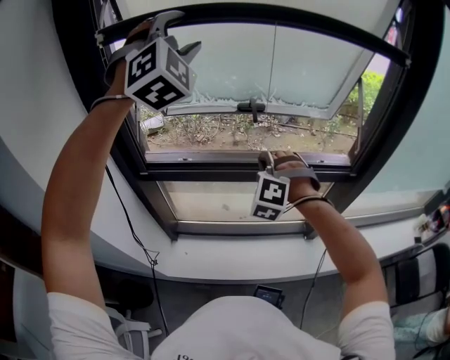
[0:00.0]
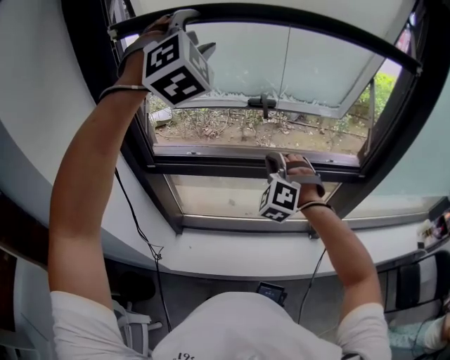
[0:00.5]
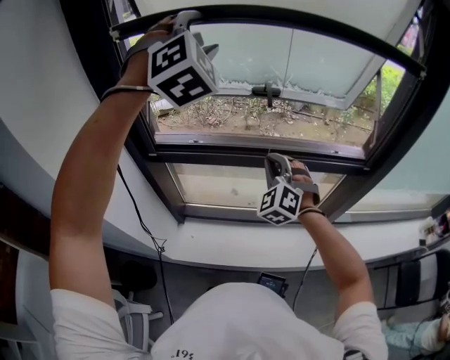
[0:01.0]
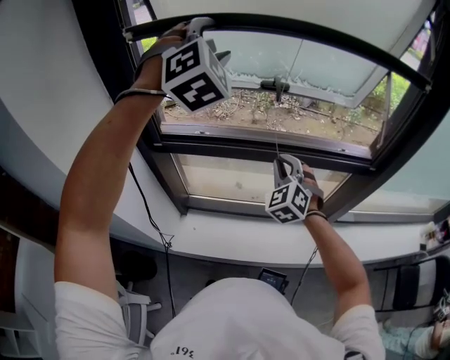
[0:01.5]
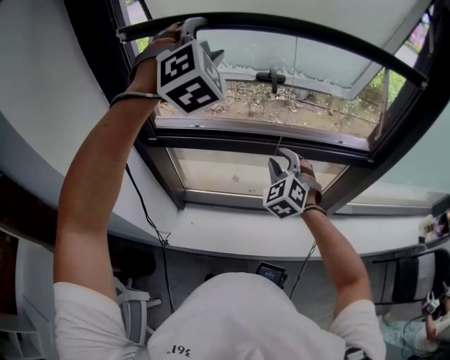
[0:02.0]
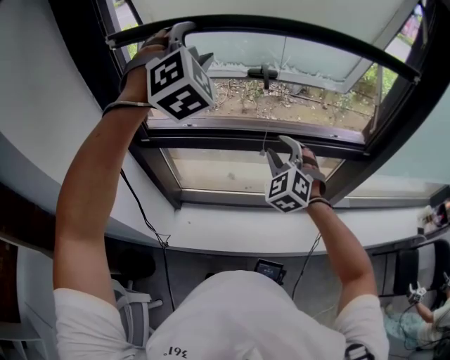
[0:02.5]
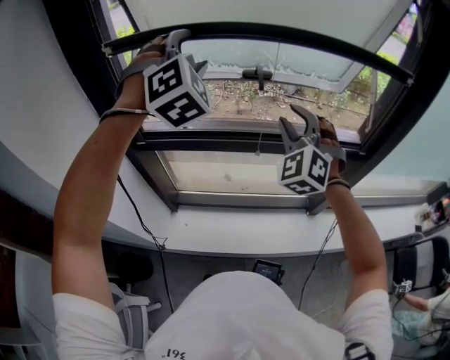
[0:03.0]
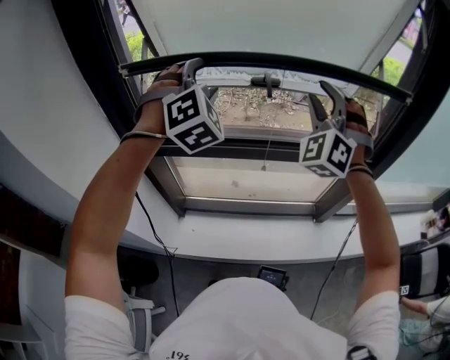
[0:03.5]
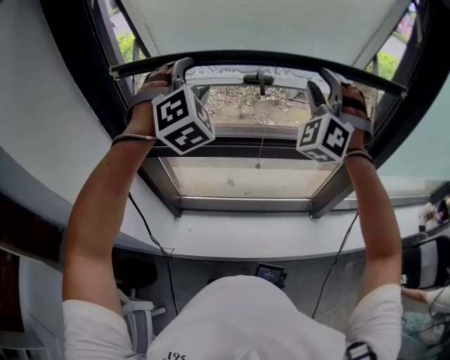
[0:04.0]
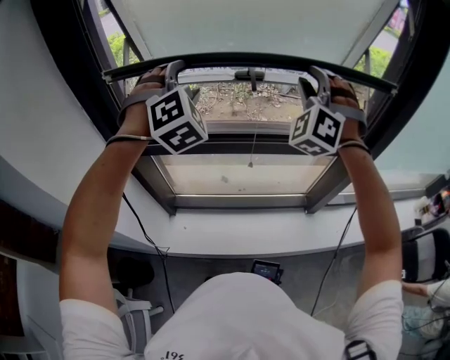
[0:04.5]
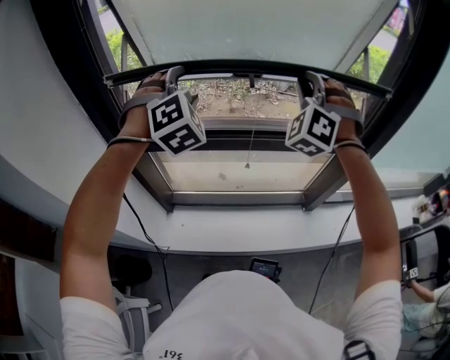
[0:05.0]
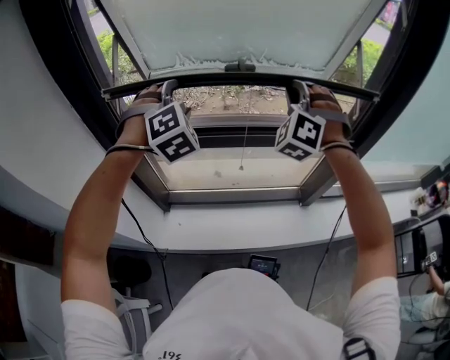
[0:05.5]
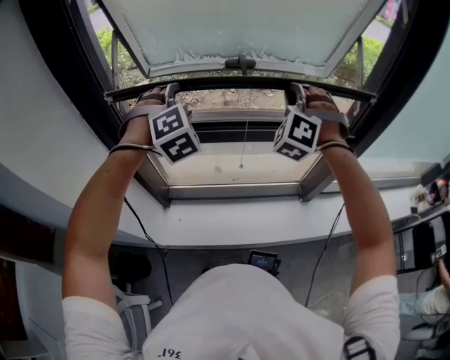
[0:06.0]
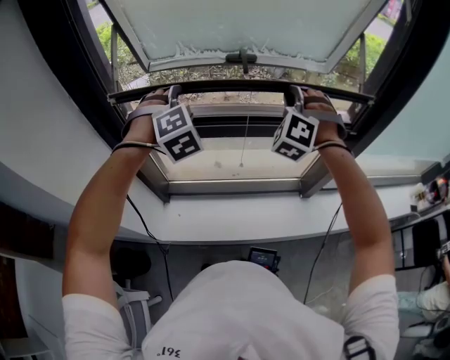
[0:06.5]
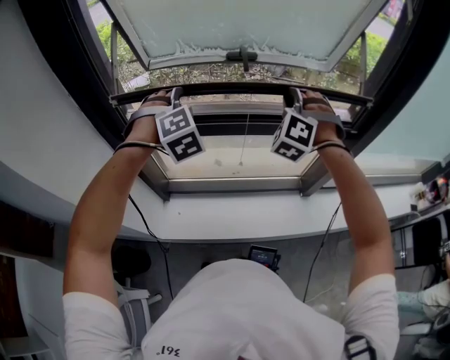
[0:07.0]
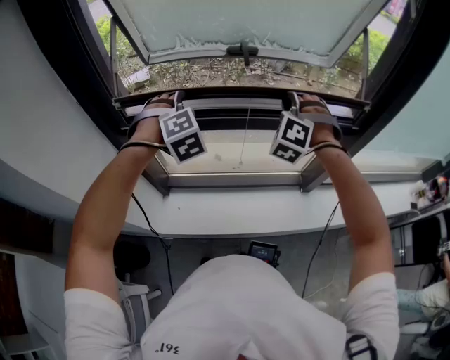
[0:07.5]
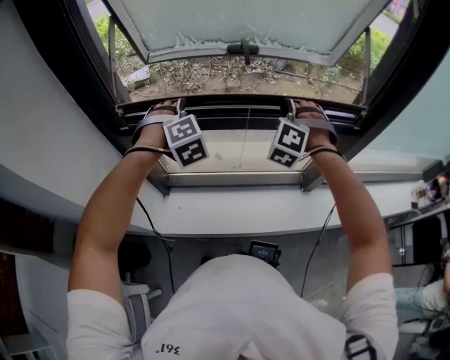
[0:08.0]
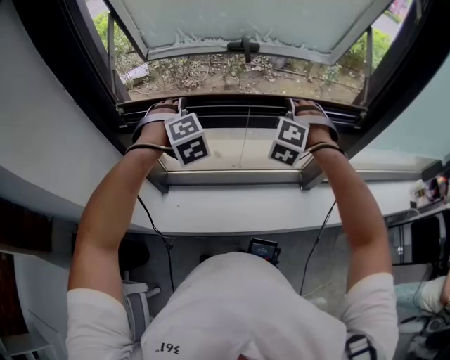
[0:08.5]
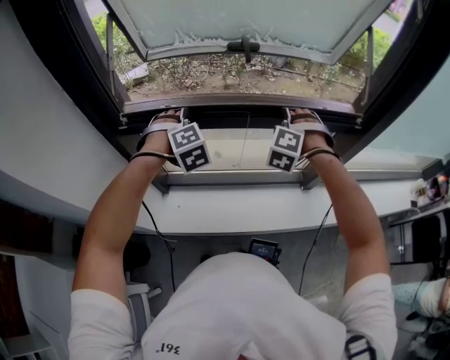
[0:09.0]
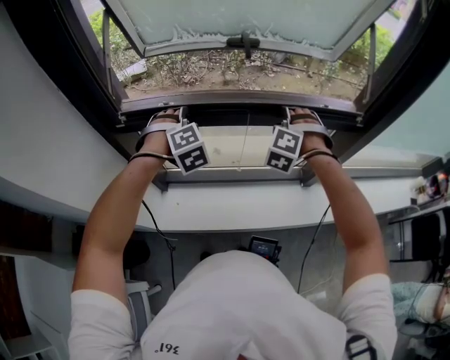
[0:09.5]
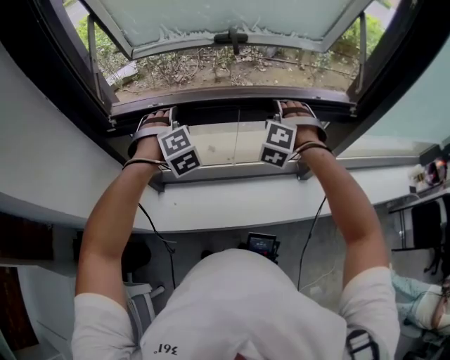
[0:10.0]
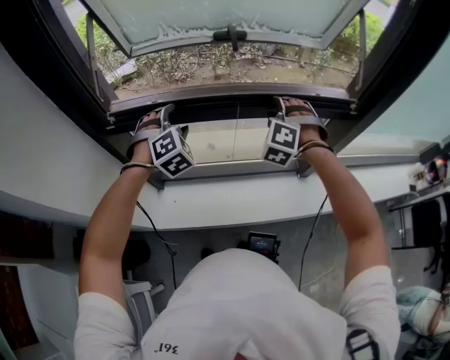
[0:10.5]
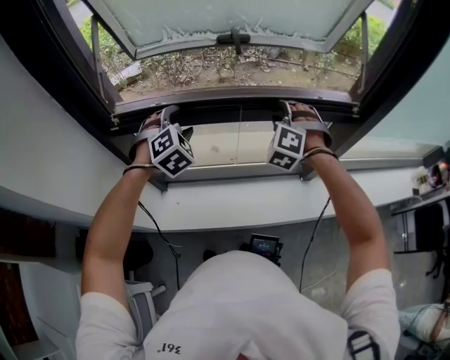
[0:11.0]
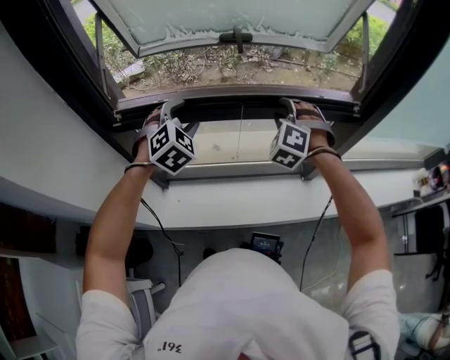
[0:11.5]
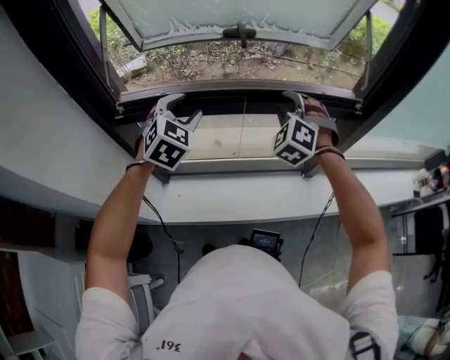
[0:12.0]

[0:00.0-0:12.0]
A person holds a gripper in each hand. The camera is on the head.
0:00.0 to 0:02.0: The grippers both shift downward by roughly 10 cm. The right gripper turns by some 30 degrees, and opens up.
0:02.0 to 0:04.0: The left gripper travels downward by about 10 cm, while the right gripper travels upward by about 25 cm, and rotates approximately 40 degrees.
0:04.0 to 0:06.0: The two grippers go approximately 10 cm downward. The right gripper rotates roughly 20 degrees, and closes its fingers.
0:06.0 to 0:08.0: The grippers both shift downward by approximately 10 cm.
0:08.0 to 0:10.0: Both grippers travel together downward, about 5 cm. The right gripper opens up.
0:10.0 to 0:12.0: The left gripper shifts approximately 10 cm upward, and changes its angle by approximately 40 degrees; the right gripper moves some 5 cm.

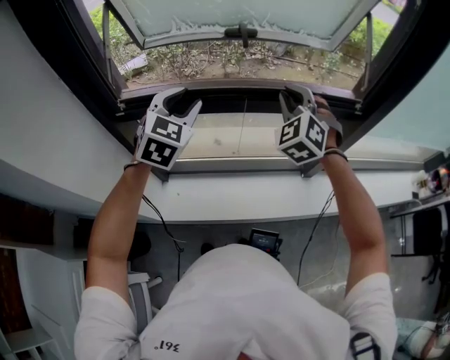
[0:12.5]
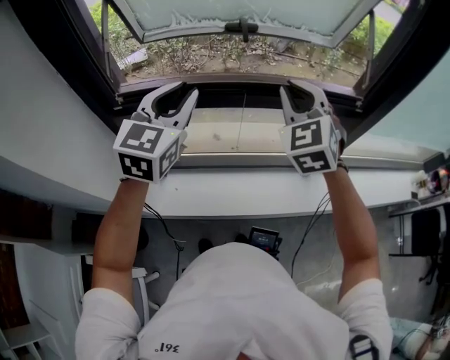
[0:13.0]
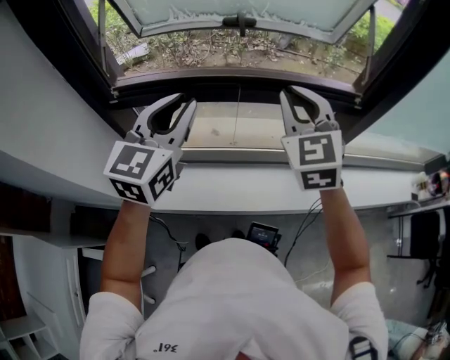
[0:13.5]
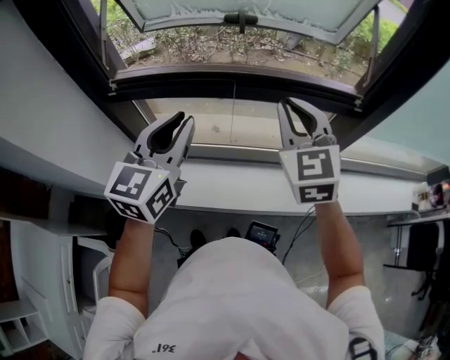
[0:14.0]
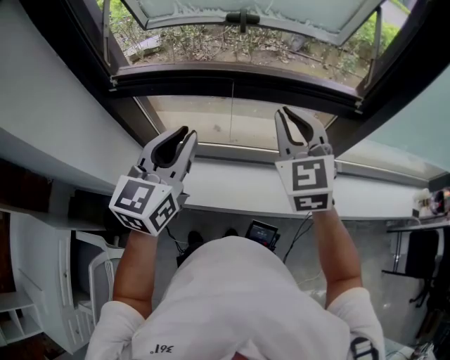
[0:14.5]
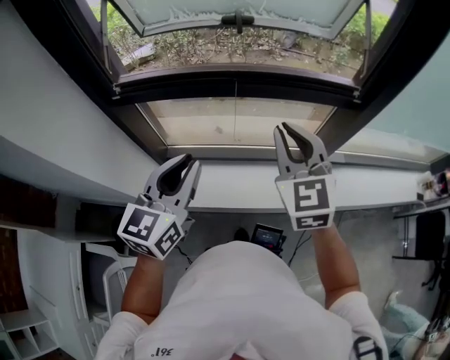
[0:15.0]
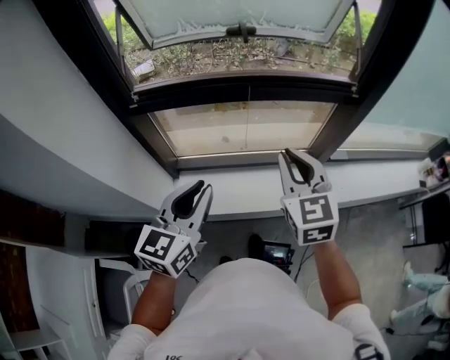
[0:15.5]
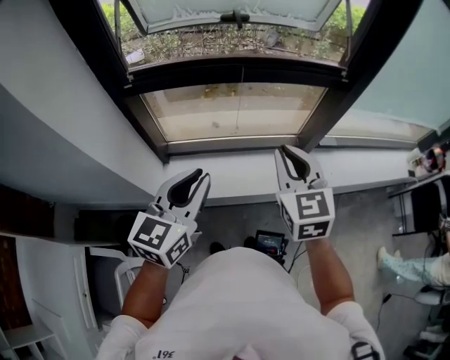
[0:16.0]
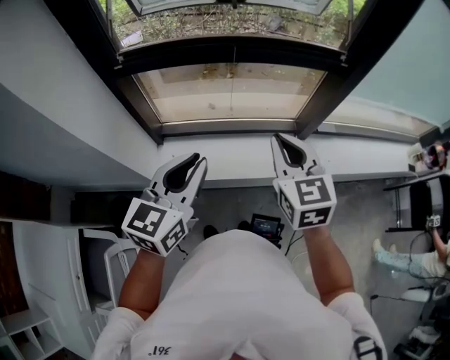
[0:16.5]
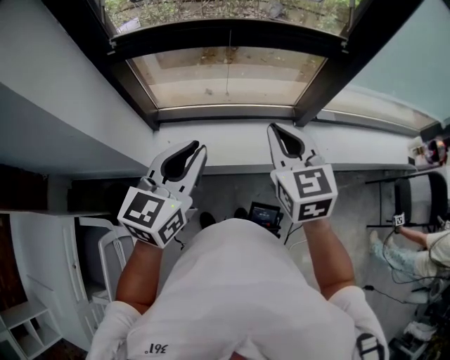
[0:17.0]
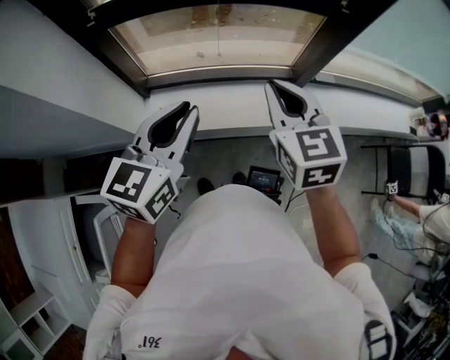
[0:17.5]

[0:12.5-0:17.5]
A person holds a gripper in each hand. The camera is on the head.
0:12.5 to 0:15.0: Both grippers travel together backward, about 20 cm. The right gripper changes its angle by approximately 40 degrees, while the left gripper swivels about 40 degrees.
0:15.0 to 0:17.5: The right gripper shifts some 15 cm backward and downward. Meanwhile the left gripper heads backward, covering approximately 10 cm.

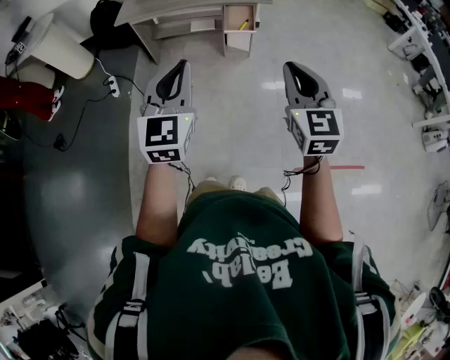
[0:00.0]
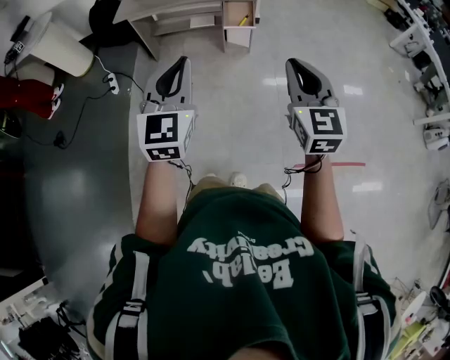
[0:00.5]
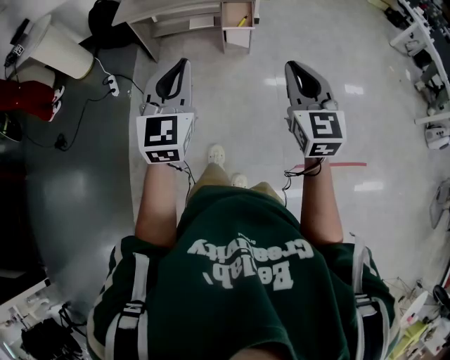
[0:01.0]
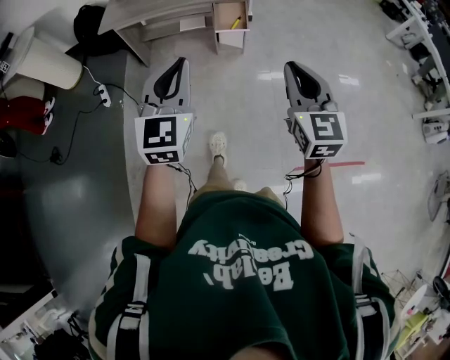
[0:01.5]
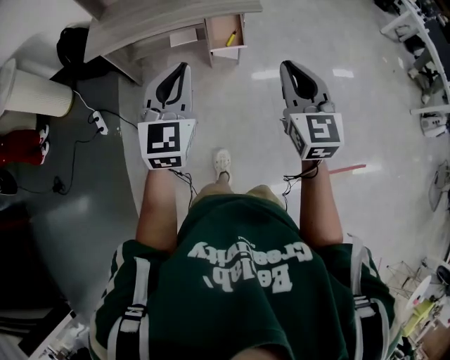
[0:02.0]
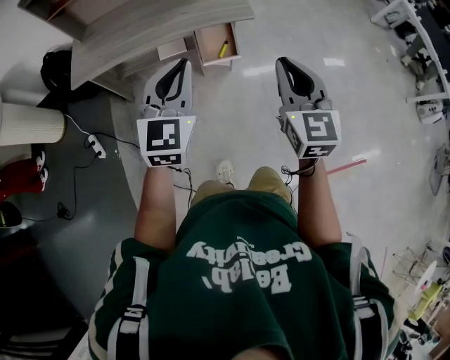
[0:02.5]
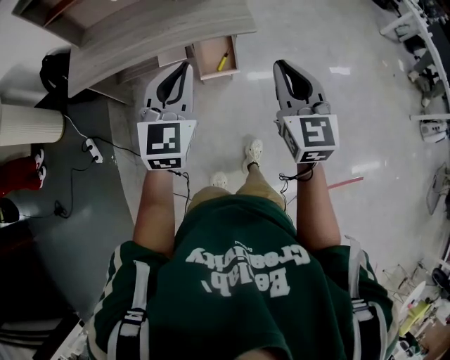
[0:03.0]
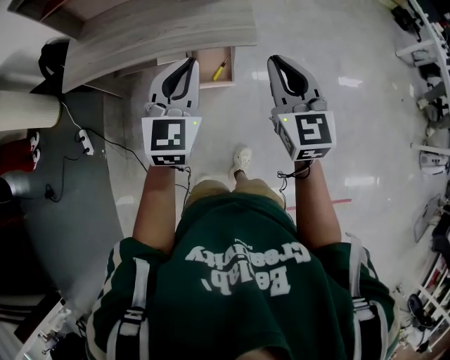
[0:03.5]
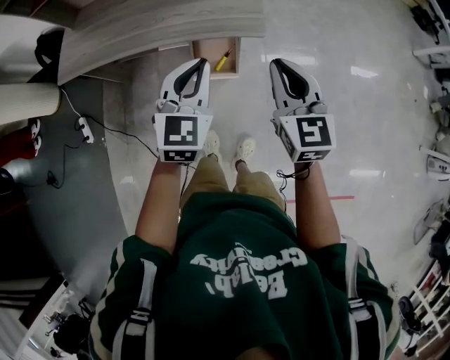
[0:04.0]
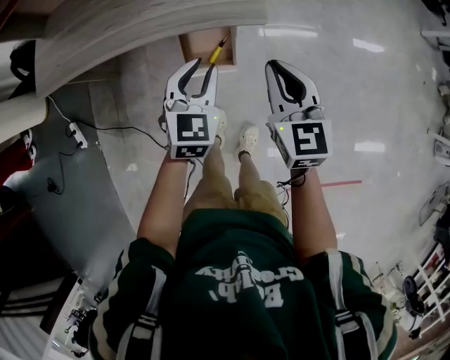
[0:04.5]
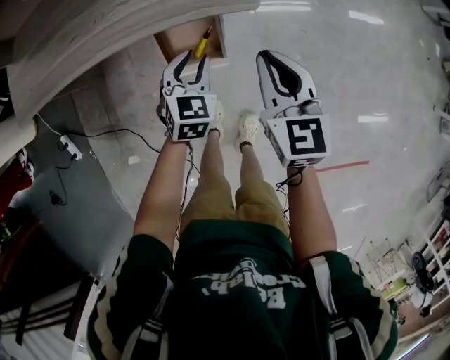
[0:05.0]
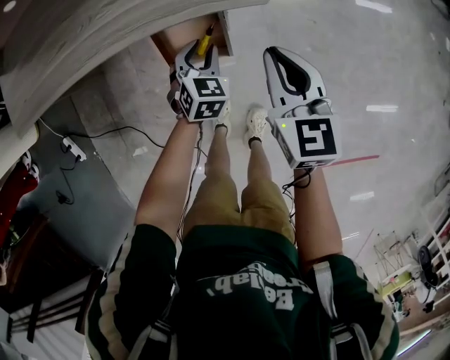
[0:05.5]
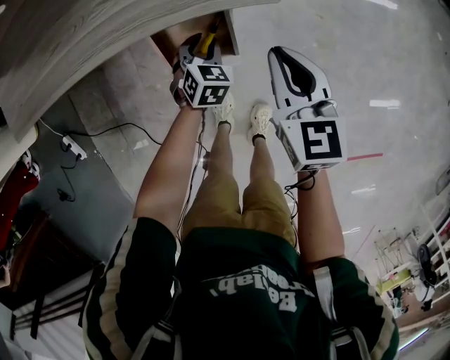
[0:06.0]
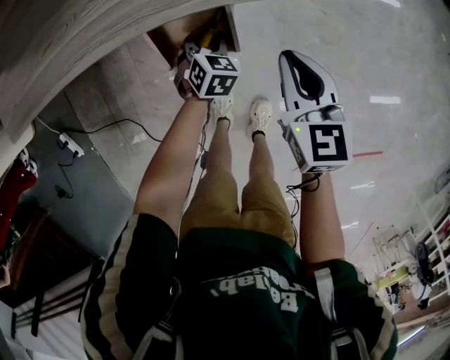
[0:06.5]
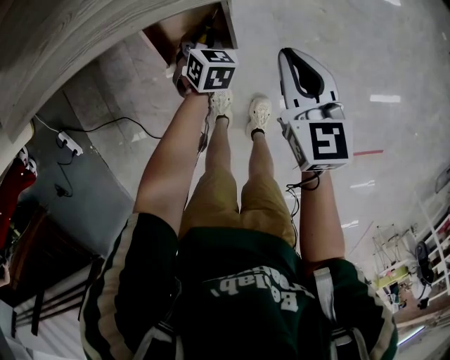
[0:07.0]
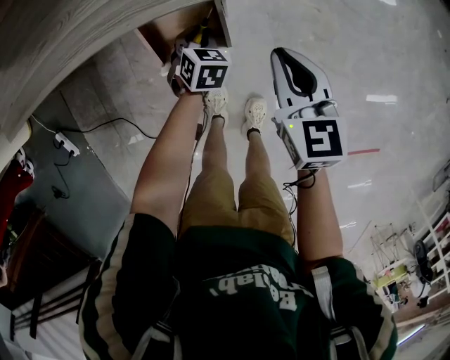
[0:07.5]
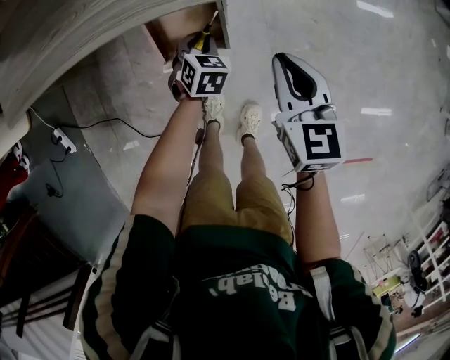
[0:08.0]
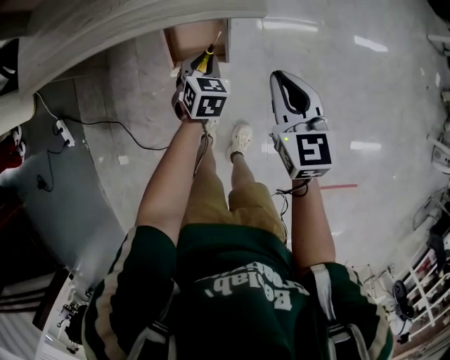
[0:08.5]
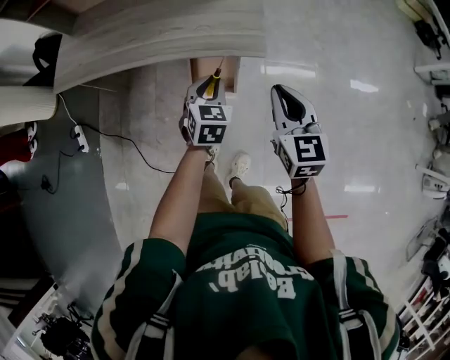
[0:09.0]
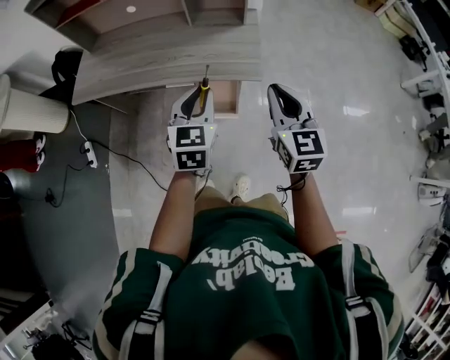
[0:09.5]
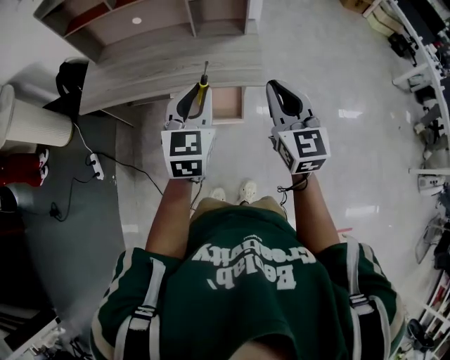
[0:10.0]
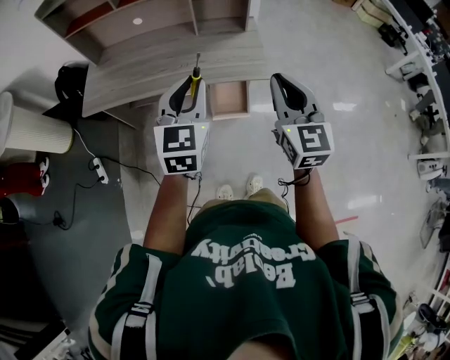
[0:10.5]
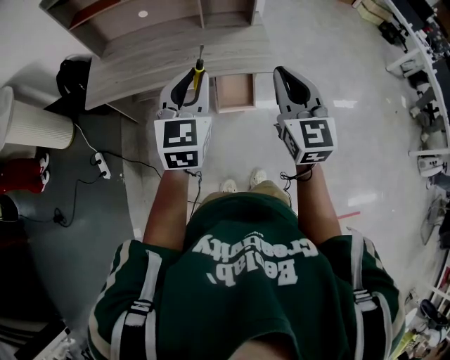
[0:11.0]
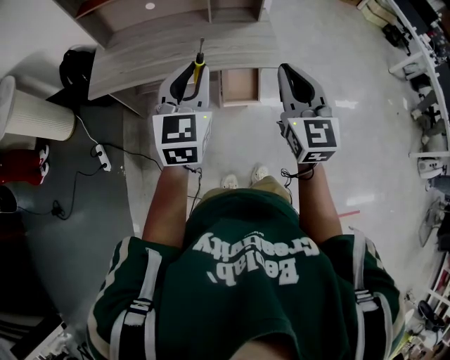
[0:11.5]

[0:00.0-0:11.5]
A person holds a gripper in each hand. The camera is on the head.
0:00.0 to 0:02.0: Both grippers move forward, approximately 35 cm.
0:02.0 to 0:04.0: The pair of grippers is taken forward, approximately 50 cm.
0:04.0 to 0:06.0: Both grippers move downward and forward, some 50 cm. The left gripper angles its fingers downward, by approximately 30 degrees, and opens up.
0:06.0 to 0:07.5: The grippers move only a little.
0:07.5 to 0:09.5: Both grippers travel together upward, roughly 50 cm. The left gripper angles its fingers upward, by about 30 degrees, while the right gripper turns by approximately 20 degrees.
0:09.5 to 0:11.5: The two grippers go about 25 cm to the left, upward and backward.
